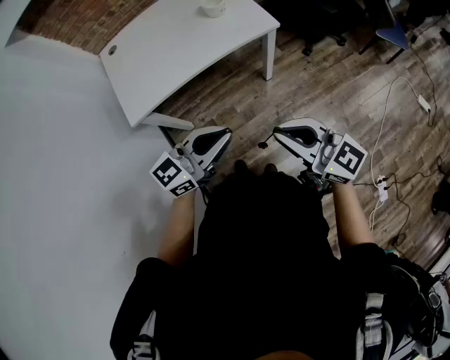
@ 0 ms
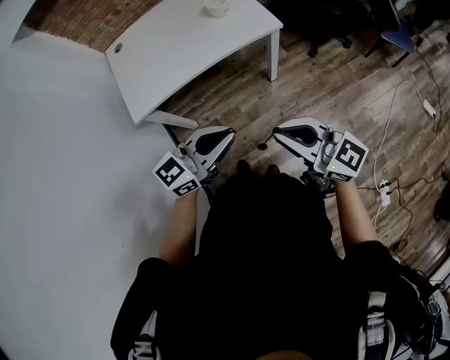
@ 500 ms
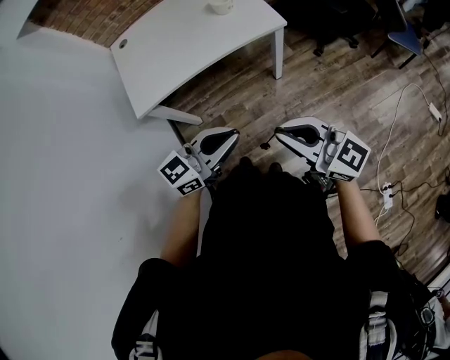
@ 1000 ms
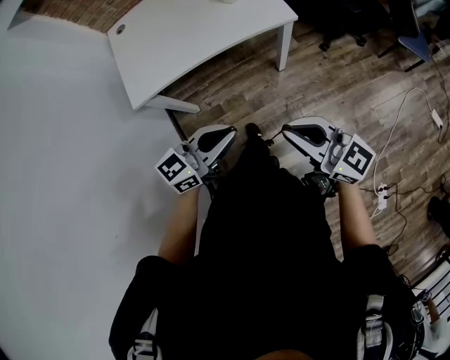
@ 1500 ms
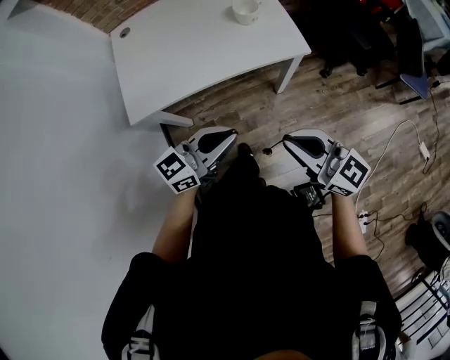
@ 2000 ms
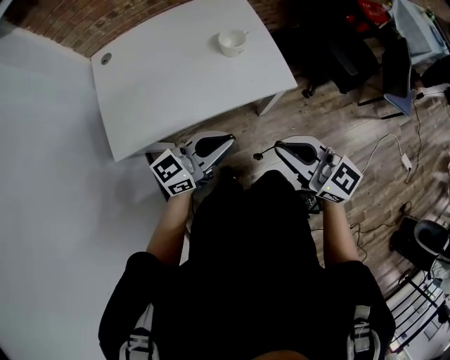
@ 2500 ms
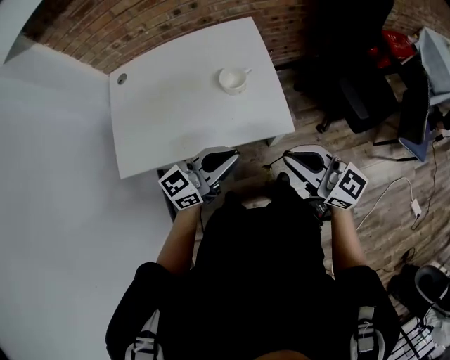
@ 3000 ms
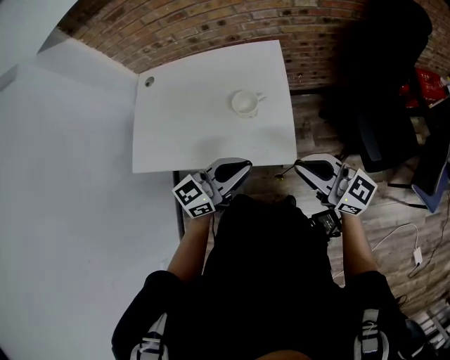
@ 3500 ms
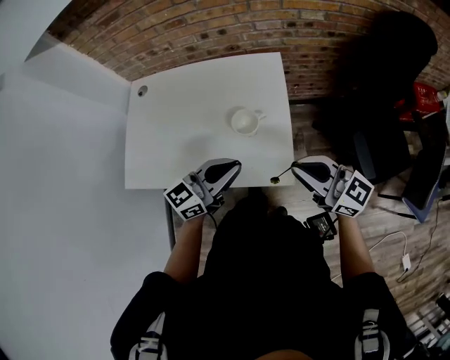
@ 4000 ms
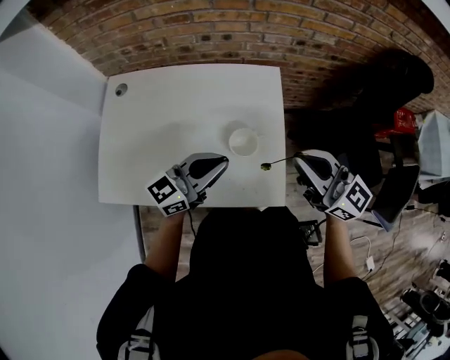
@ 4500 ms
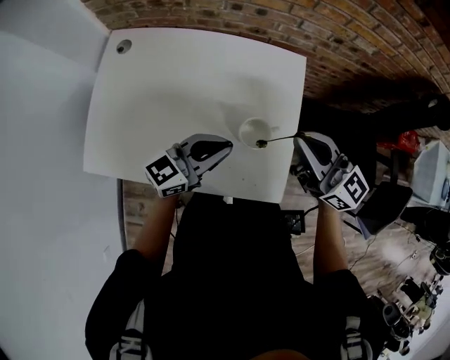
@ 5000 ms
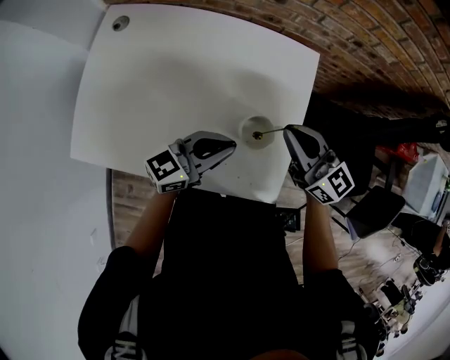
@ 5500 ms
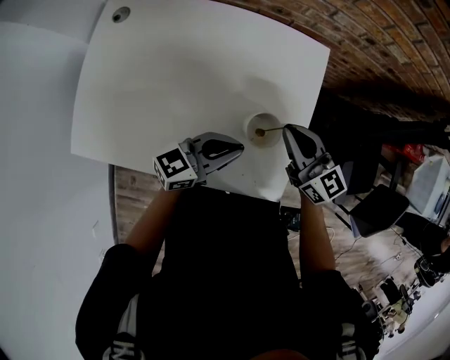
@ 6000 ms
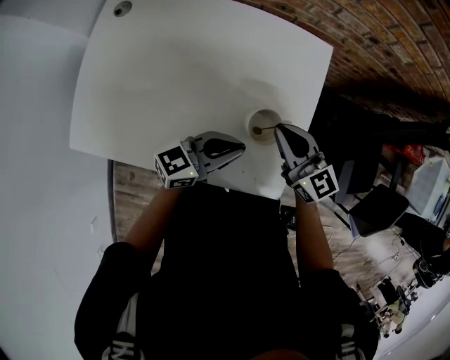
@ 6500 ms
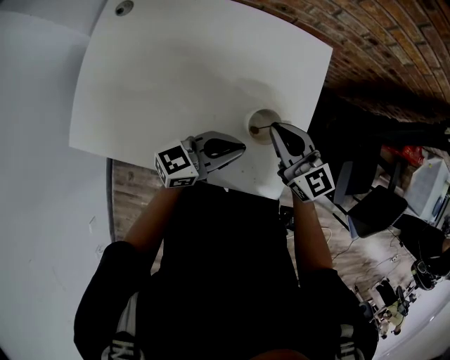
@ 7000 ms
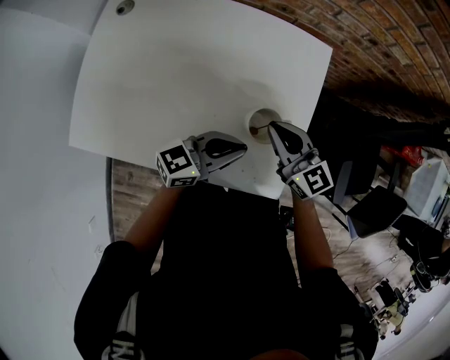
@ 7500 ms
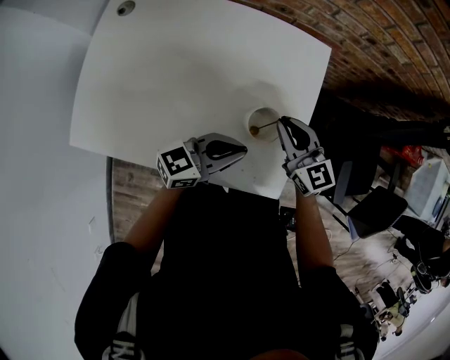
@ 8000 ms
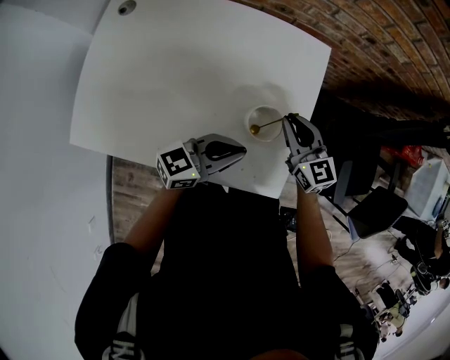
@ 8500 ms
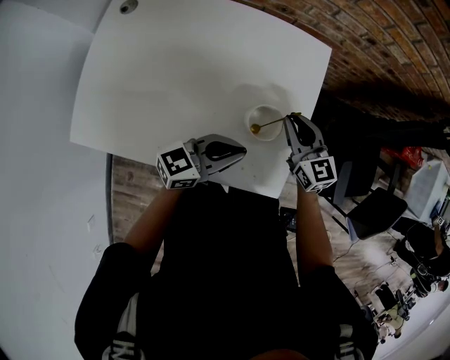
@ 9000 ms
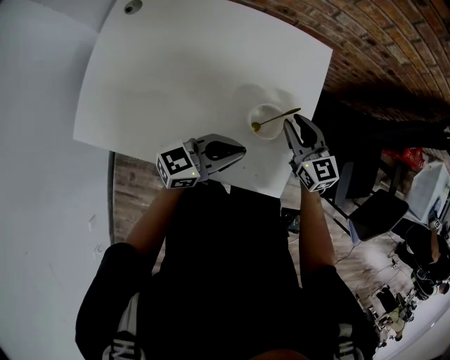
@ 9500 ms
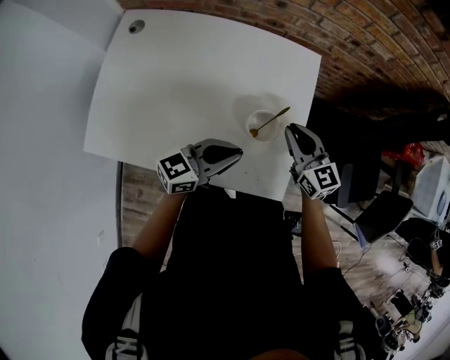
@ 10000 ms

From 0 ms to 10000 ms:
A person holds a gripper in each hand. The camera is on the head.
From 0 ms to 2000 ms: Both grippers move forward, approximately 10 cm.
From 2000 ms to 4000 ms: The grippers both shift forward and to the right by roughly 40 cm.
From 4000 ms to 6000 ms: The right gripper goes about 30 cm forward, downward and to the left; the left gripper goes approximately 20 cm downward, forward and to the left.
From 6000 ms to 8000 ms: The grippers make only small movements.
From 8000 ms to 10000 ms: The grippers stay close to where they were, moving slightly.

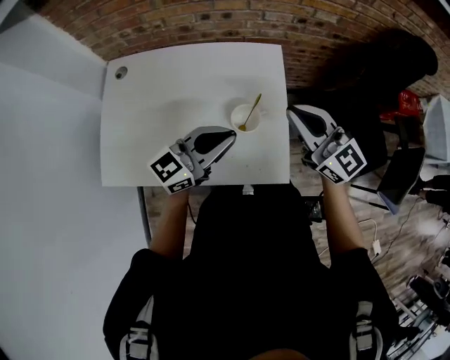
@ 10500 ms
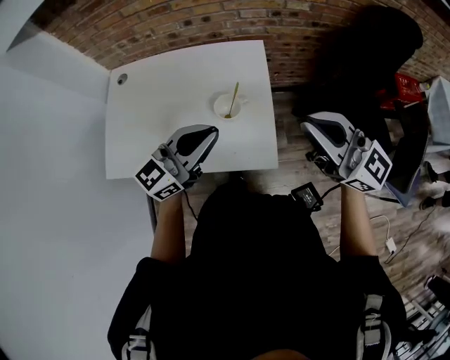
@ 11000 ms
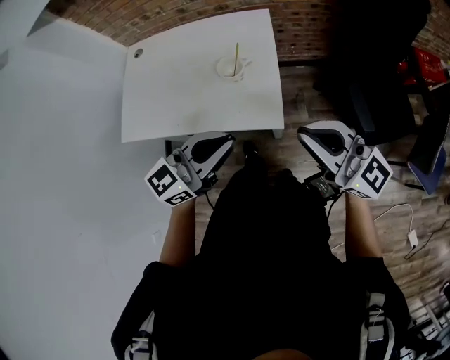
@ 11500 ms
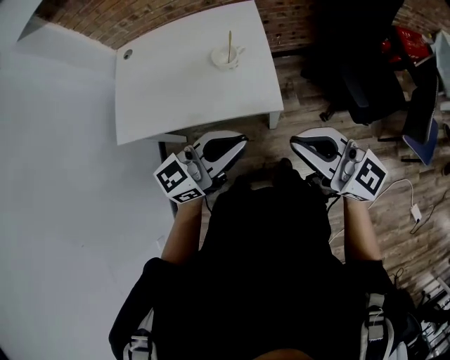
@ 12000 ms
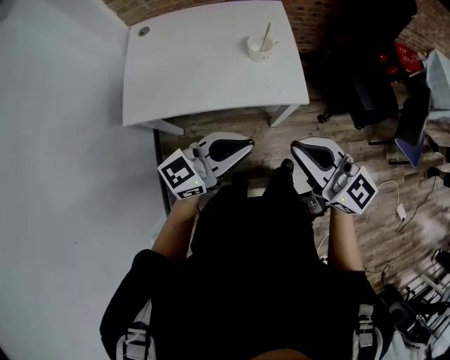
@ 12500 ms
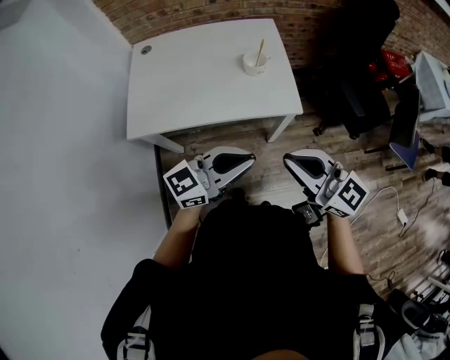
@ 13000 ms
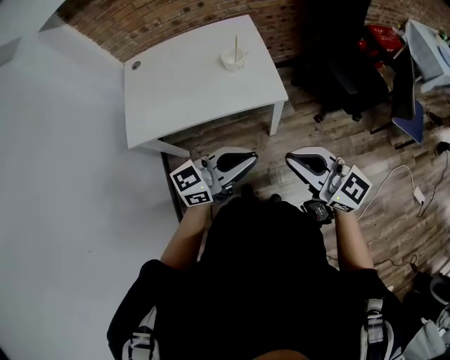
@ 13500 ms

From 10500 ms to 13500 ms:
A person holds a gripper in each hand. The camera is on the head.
From 10500 ms to 12000 ms: The right gripper shifts roughly 35 cm backward. The left gripper heads backward and to the right, covering about 30 cm.
From 12000 ms to 13500 ms: Both grippers travel together backward and to the left, about 15 cm.

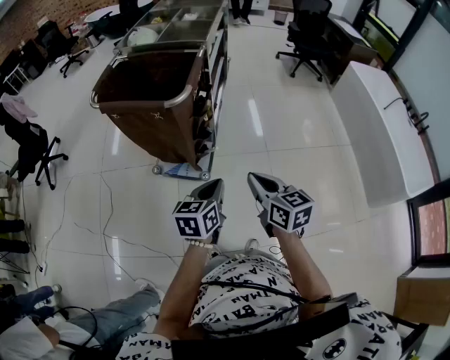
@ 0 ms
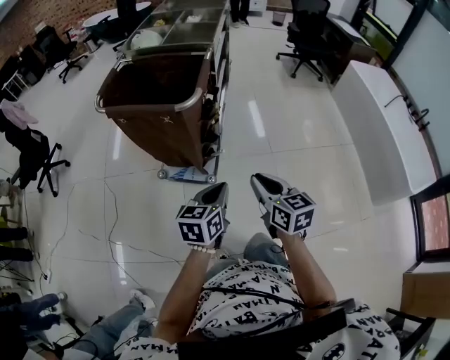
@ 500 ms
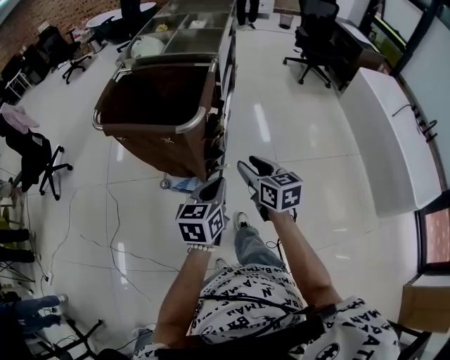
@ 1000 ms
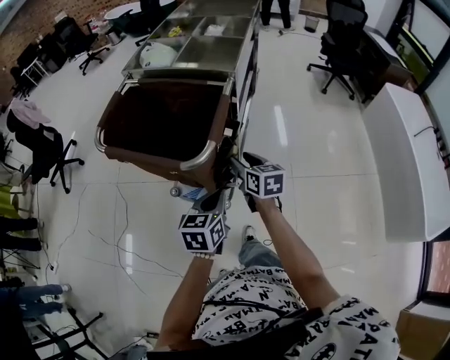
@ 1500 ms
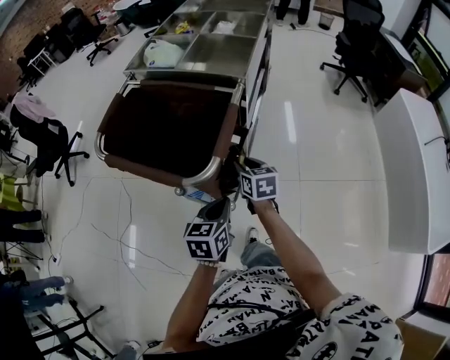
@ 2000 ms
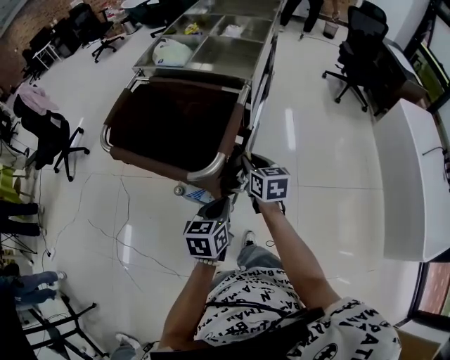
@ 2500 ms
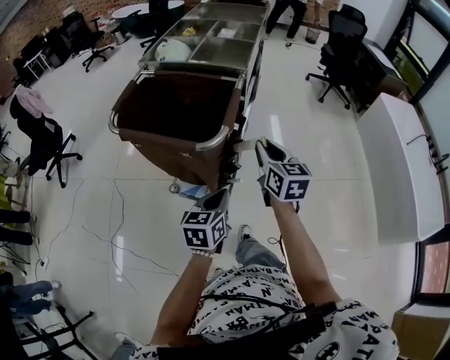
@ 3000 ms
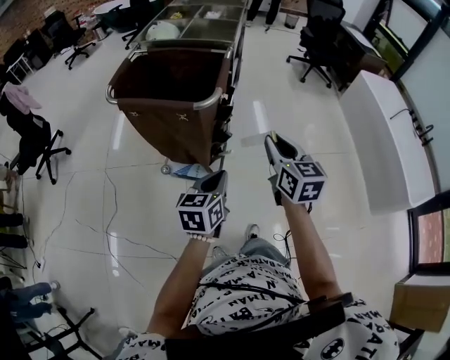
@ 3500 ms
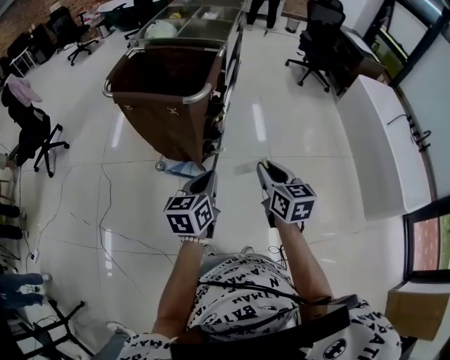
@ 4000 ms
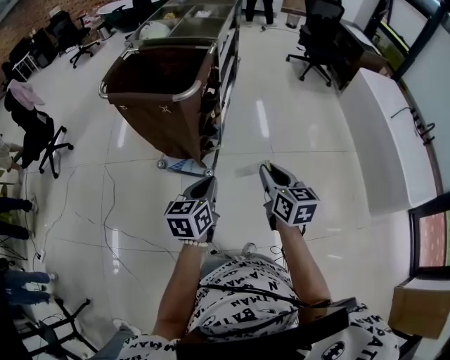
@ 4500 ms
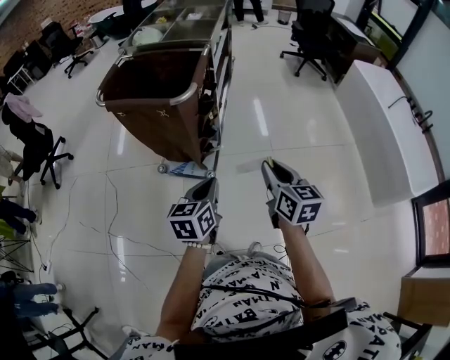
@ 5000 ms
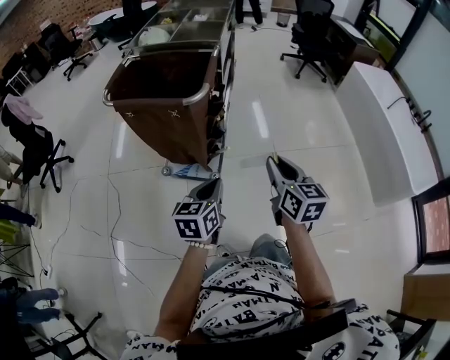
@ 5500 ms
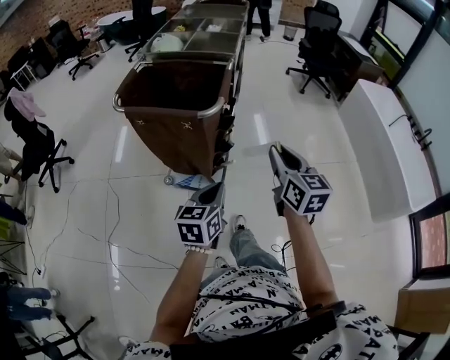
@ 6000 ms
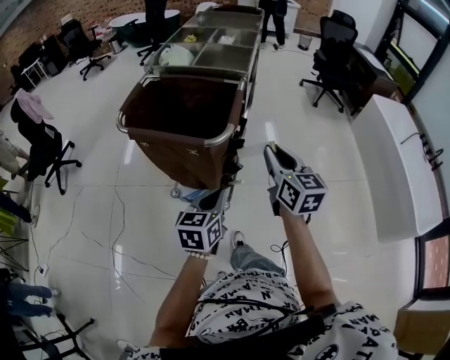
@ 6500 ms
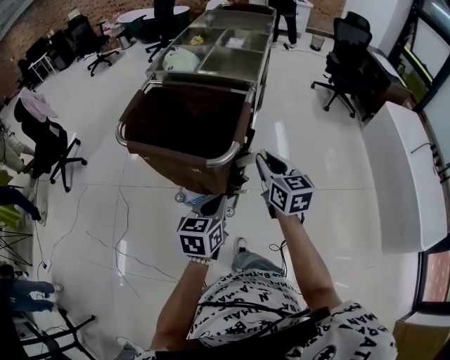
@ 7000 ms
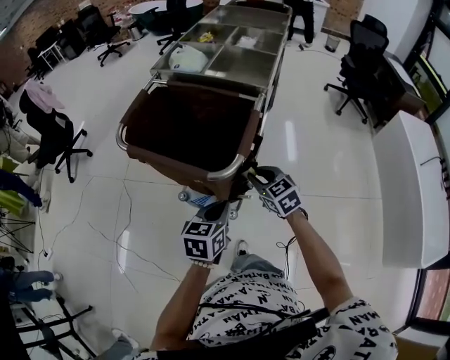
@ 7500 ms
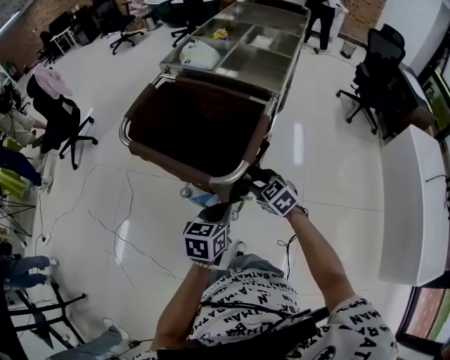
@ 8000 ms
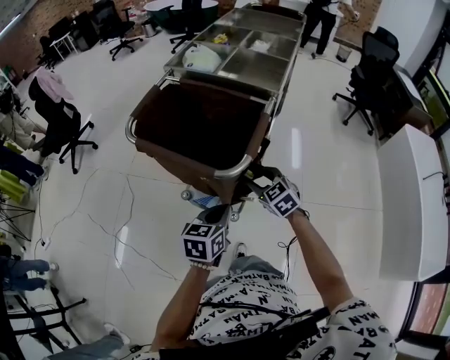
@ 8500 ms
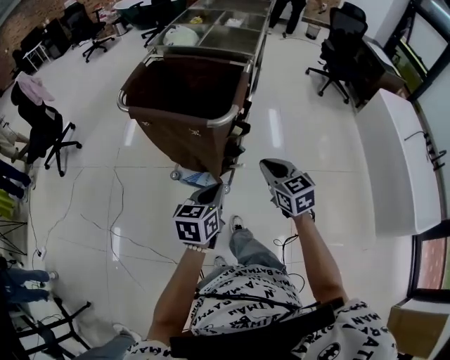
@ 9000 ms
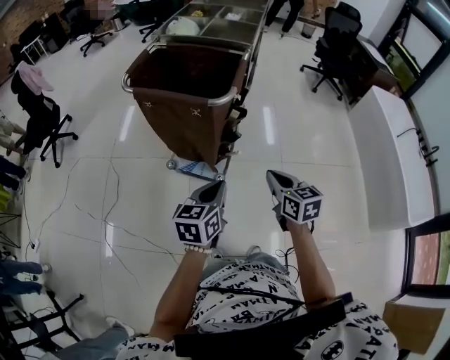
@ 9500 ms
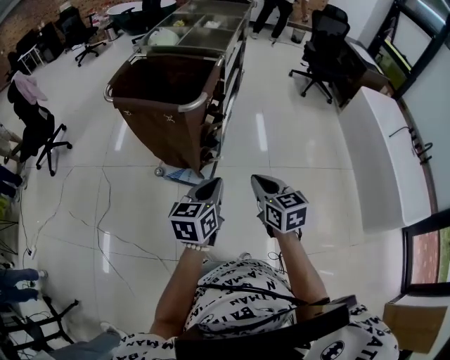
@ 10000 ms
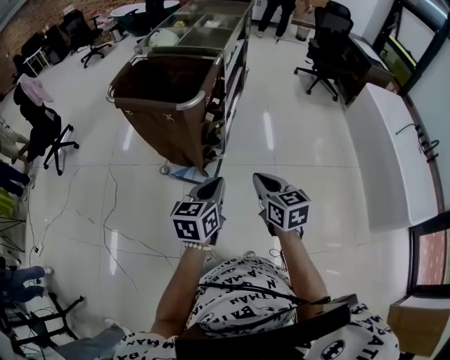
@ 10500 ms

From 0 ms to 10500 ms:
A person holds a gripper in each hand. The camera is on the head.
From 0 ms to 2000 ms: The left gripper is displaced forward by about 20 cm, while the right gripper is displaced forward by approximately 35 cm, and opens.
From 2000 ms to 4000 ms: The right gripper travels backward and upward by some 35 cm; the left gripper travels backward by roughly 20 cm.
From 4000 ms to 6500 ms: The left gripper travels forward by some 10 cm. Meanwhile the right gripper moves forward, upward and to the left, about 20 cm.
From 6500 ms to 8500 ms: The left gripper heads forward and downward, covering about 10 cm; the right gripper shifts approximately 20 cm downward and forward, rotates approximately 50 degrees, and opens up.
From 8500 ms to 10500 ms: The right gripper moves backward and to the right, some 30 cm, changes its angle by some 40 degrees, and closes up. Meanwhile the left gripper heads backward and to the right, covering approximately 20 cm.

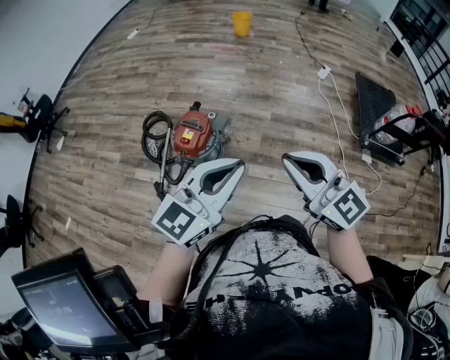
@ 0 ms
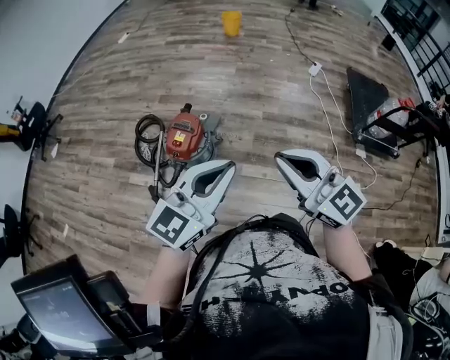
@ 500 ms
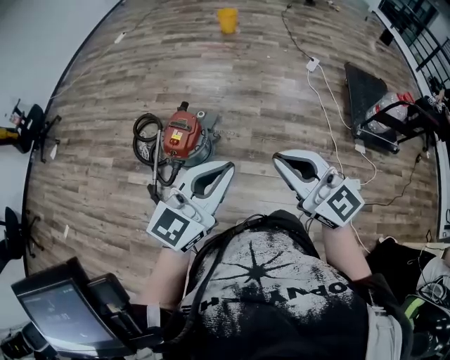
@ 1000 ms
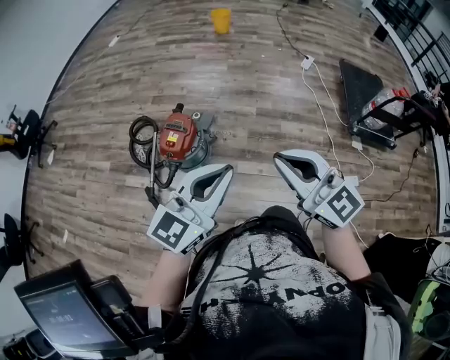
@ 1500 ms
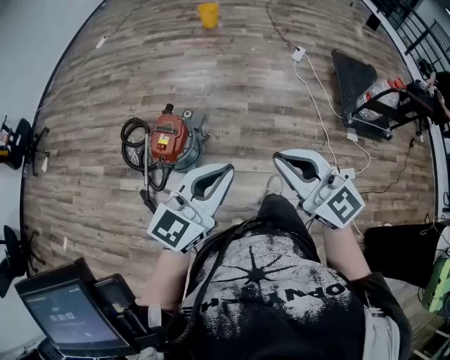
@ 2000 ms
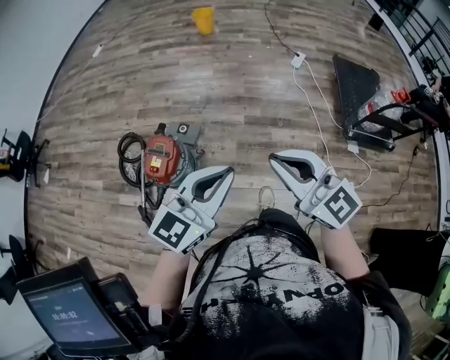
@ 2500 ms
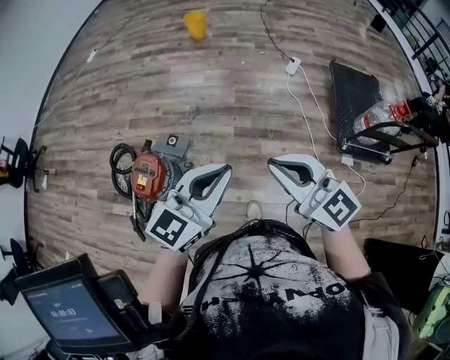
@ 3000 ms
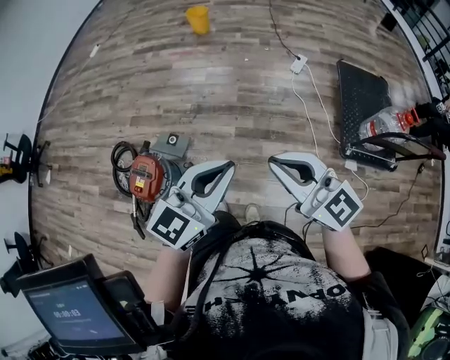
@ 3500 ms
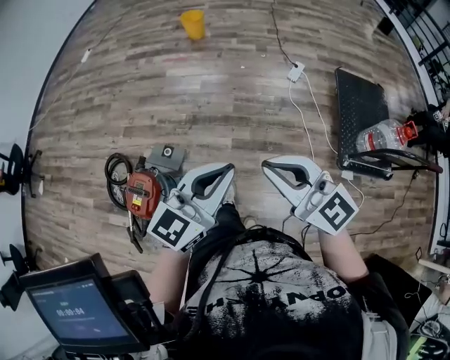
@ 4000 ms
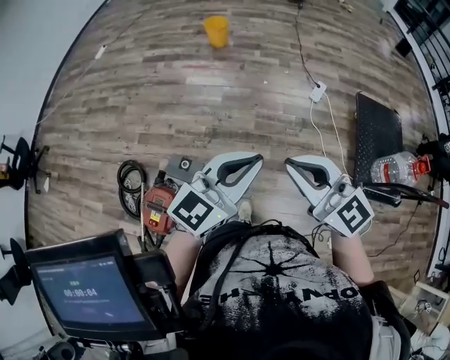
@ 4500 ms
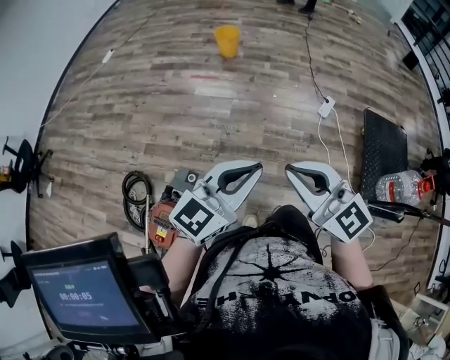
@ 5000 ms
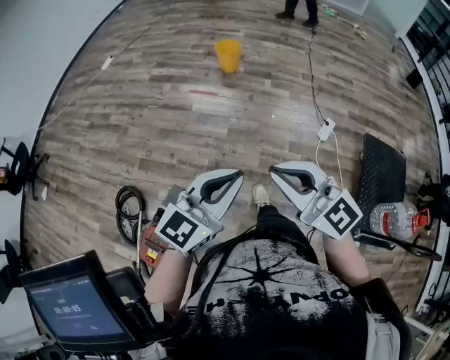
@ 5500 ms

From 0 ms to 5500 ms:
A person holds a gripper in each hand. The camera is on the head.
From 0 ms to 2000 ms: The two grippers go some 5 cm to the right.
From 2000 ms to 3500 ms: The two grippers go approximately 40 cm forward and to the right.
From 3500 ms to 5500 ms: The pair of grippers is taken forward, about 40 cm.
